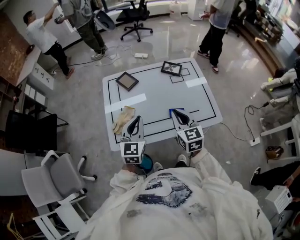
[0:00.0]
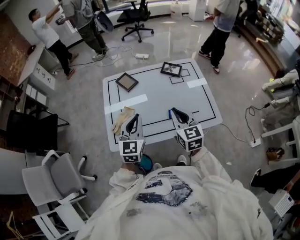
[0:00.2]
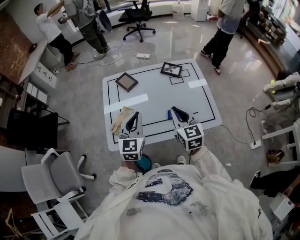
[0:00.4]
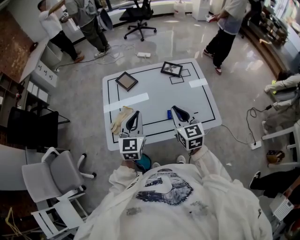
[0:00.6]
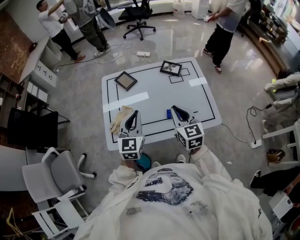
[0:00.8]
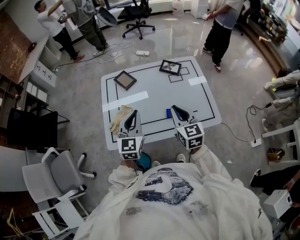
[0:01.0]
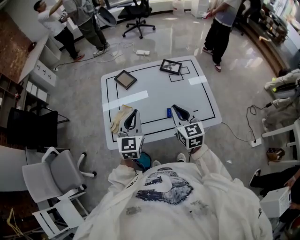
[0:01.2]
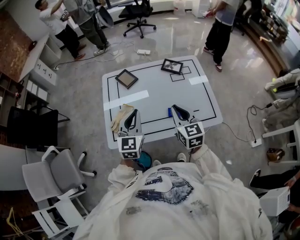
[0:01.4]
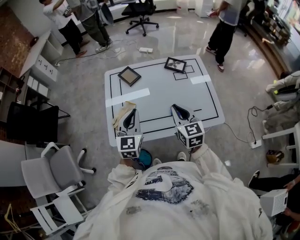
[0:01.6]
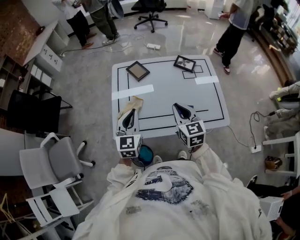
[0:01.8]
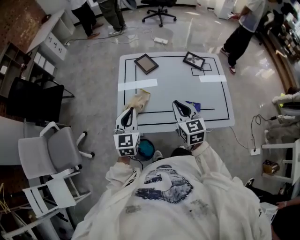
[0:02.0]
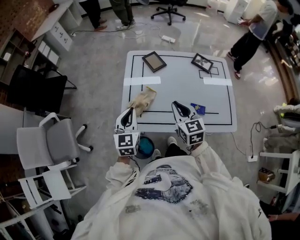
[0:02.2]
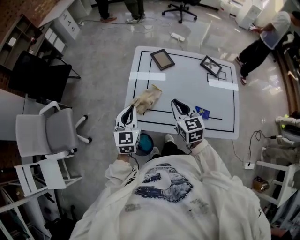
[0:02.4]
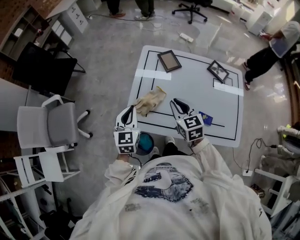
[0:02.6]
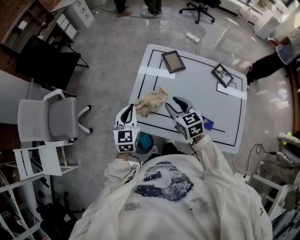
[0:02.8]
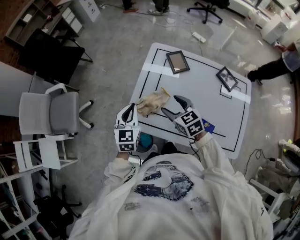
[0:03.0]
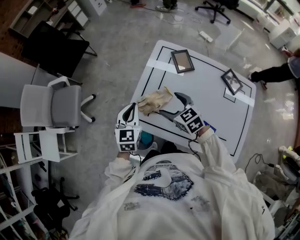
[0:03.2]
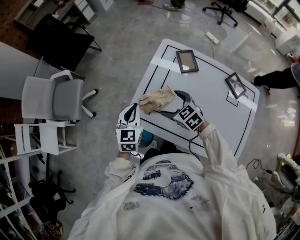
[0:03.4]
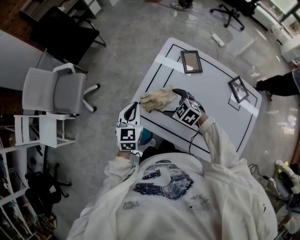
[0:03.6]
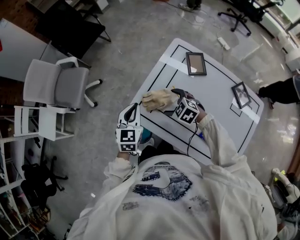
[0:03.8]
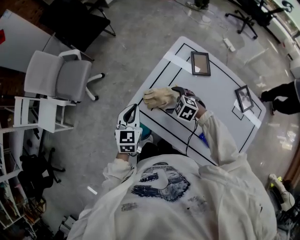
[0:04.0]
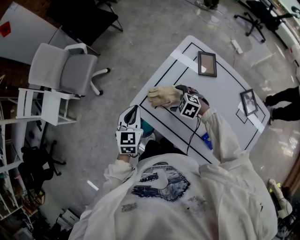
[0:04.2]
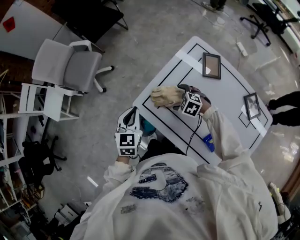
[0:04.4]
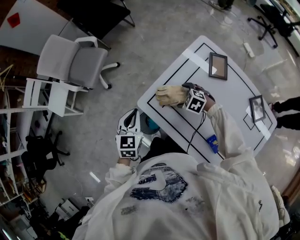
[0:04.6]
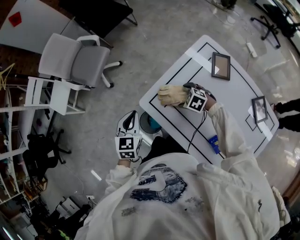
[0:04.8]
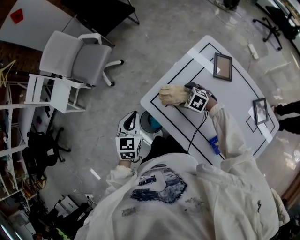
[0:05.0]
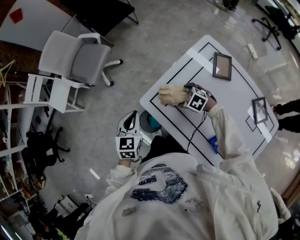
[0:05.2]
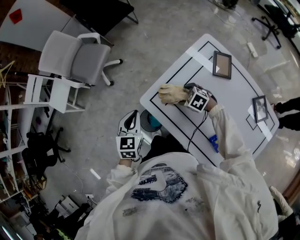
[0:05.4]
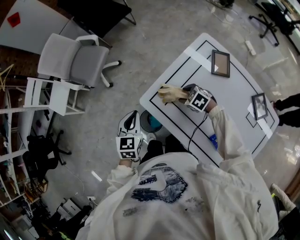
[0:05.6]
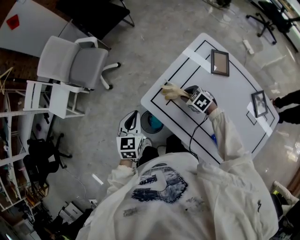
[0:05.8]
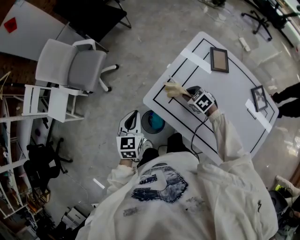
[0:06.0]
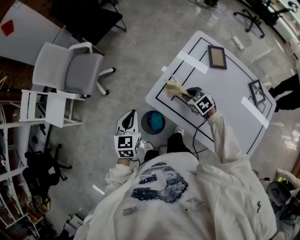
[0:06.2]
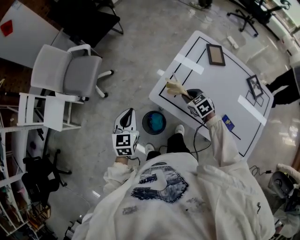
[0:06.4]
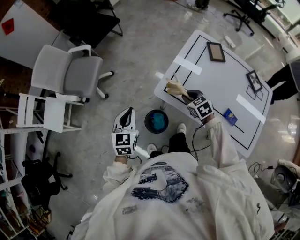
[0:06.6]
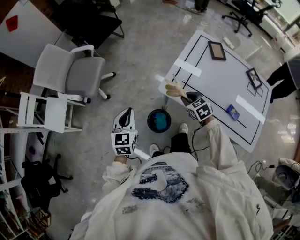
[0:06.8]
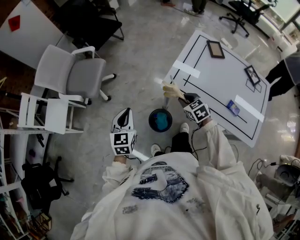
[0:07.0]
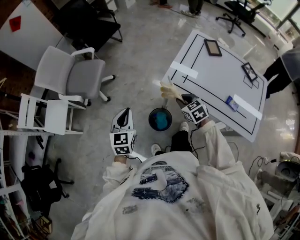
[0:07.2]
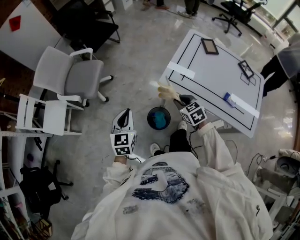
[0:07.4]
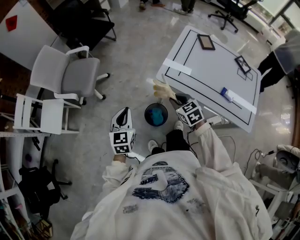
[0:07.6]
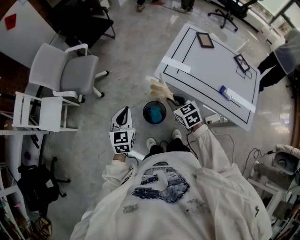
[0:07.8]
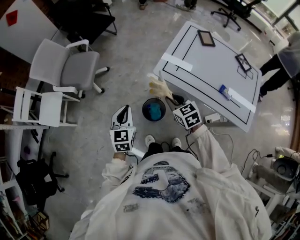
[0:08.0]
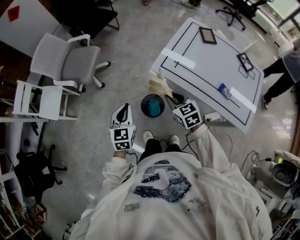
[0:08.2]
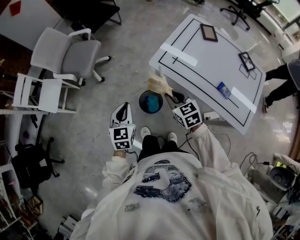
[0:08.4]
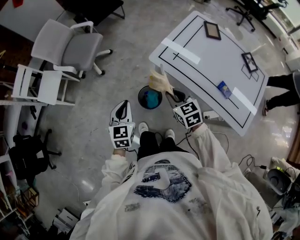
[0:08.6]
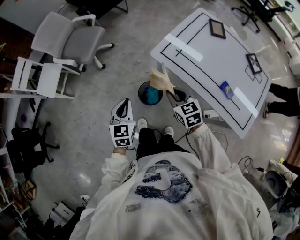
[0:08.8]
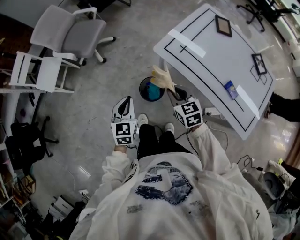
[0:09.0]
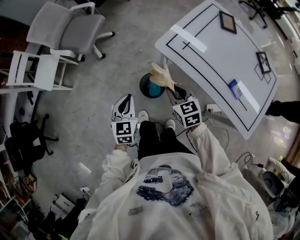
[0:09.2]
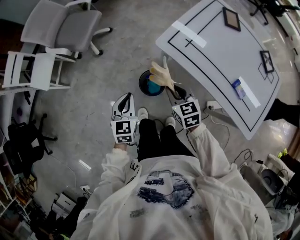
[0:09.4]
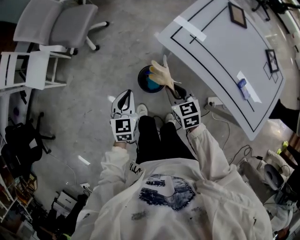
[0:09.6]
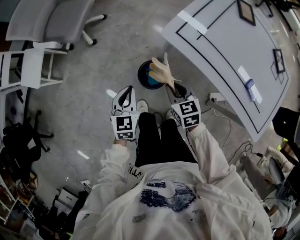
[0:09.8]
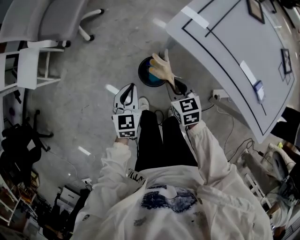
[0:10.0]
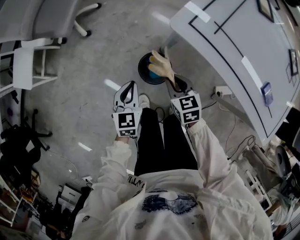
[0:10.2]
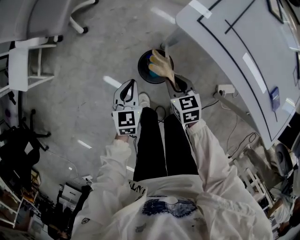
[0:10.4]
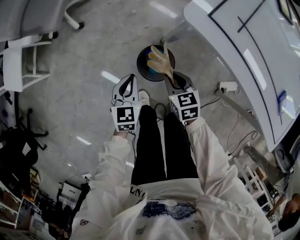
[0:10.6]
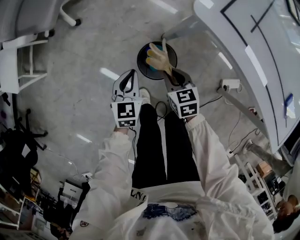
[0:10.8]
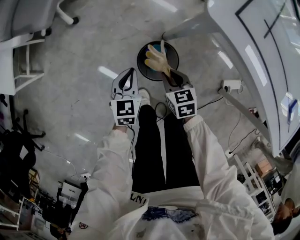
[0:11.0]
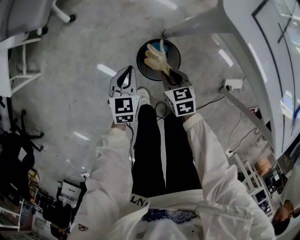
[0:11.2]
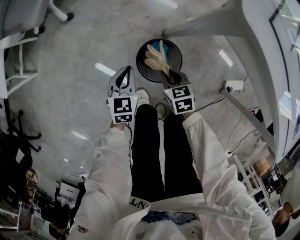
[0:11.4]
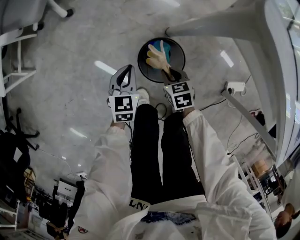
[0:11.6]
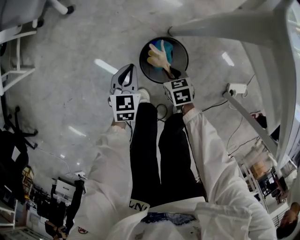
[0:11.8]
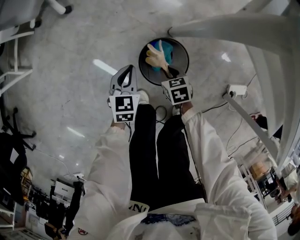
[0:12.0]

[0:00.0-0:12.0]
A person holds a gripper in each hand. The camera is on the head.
0:00.0 to 0:01.6: The grippers make only small movements.
0:01.6 to 0:03.0: The left gripper shifts by about 20 cm, and rotates roughly 30 degrees. Meanwhile the right gripper ends up about 25 cm from where it was, rotates roughly 50 degrees, and opens its fingers.
0:03.0 to 0:04.4: The left gripper ends up roughly 10 cm from where it was, and swivels some 20 degrees. The right gripper moves downward, approximately 15 cm, and swivels about 60 degrees.
0:04.4 to 0:06.0: The right gripper rotates approximately 20 degrees, and closes its fingers; the left gripper heads to the left, covering approximately 10 cm.
0:06.0 to 0:07.6: The left gripper moves to the left and backward, approximately 25 cm. The right gripper moves to the left, backward and upward, about 30 cm, and rotates approximately 30 degrees.
0:07.6 to 0:09.0: The right gripper goes roughly 5 cm backward. The left gripper shifts approximately 15 cm backward, downward and to the right.
0:09.0 to 0:10.4: The two grippers go approximately 25 cm downward.
0:10.4 to 0:12.0: The grippers both shift downward by some 30 cm.

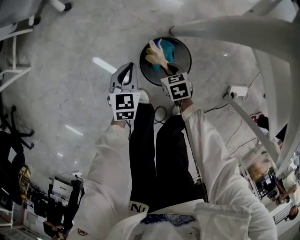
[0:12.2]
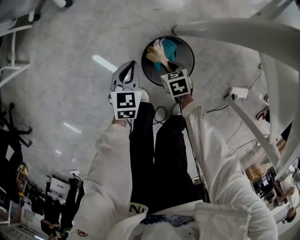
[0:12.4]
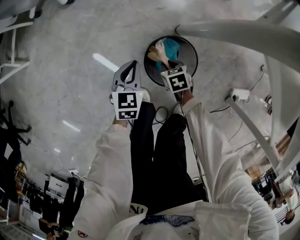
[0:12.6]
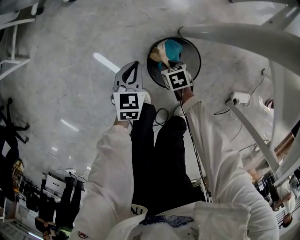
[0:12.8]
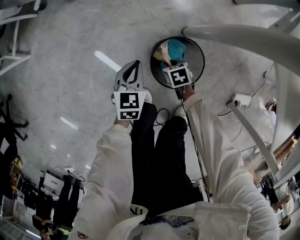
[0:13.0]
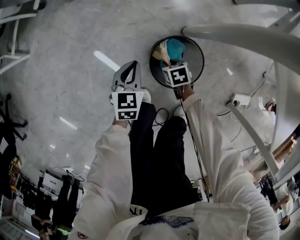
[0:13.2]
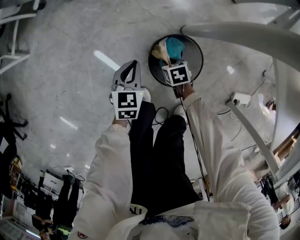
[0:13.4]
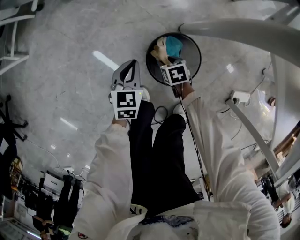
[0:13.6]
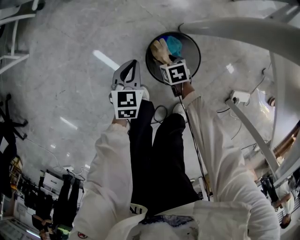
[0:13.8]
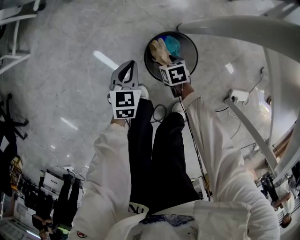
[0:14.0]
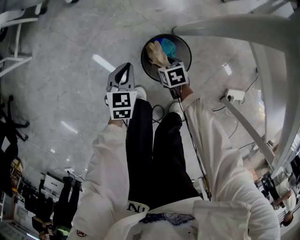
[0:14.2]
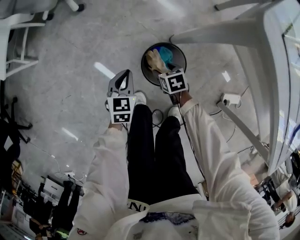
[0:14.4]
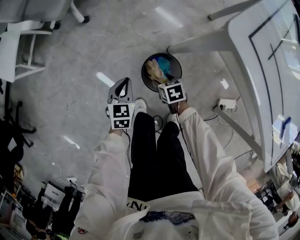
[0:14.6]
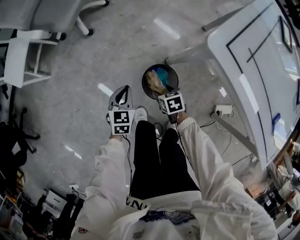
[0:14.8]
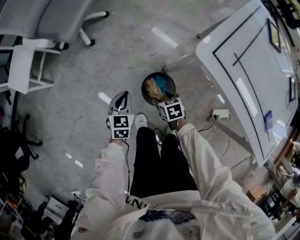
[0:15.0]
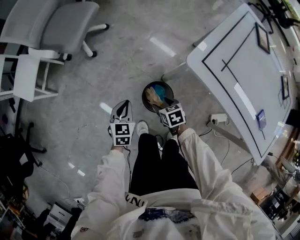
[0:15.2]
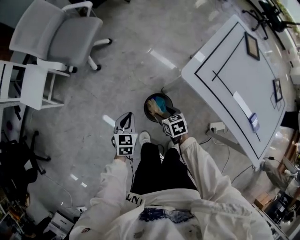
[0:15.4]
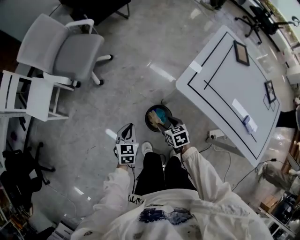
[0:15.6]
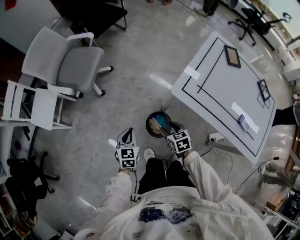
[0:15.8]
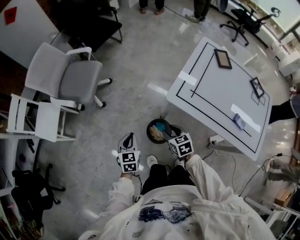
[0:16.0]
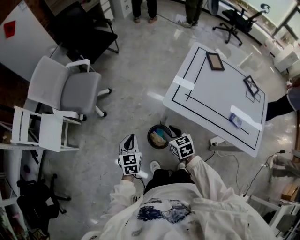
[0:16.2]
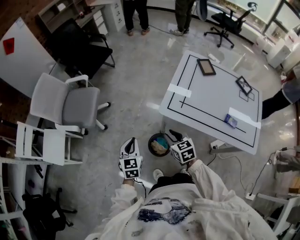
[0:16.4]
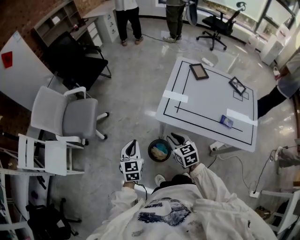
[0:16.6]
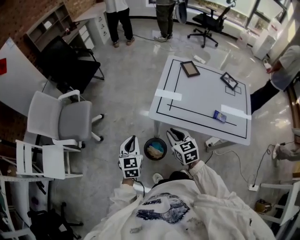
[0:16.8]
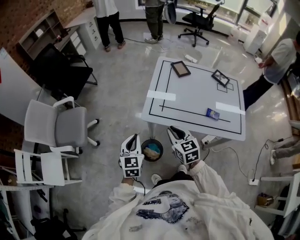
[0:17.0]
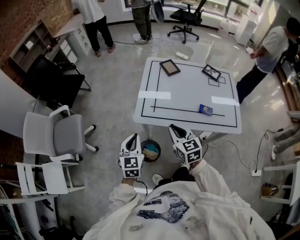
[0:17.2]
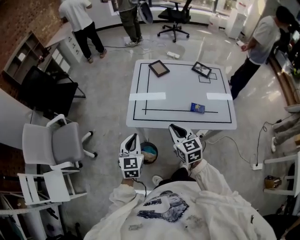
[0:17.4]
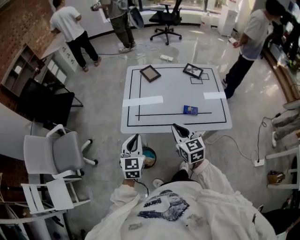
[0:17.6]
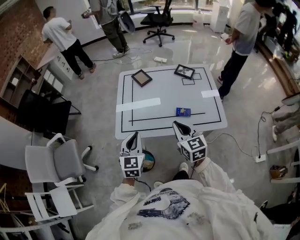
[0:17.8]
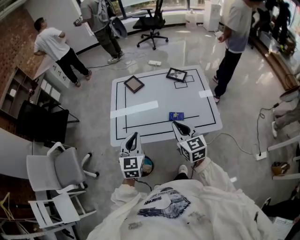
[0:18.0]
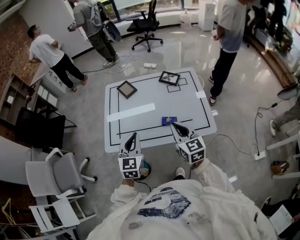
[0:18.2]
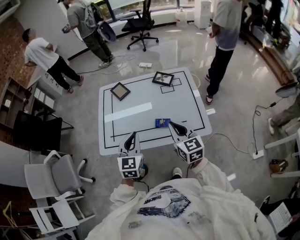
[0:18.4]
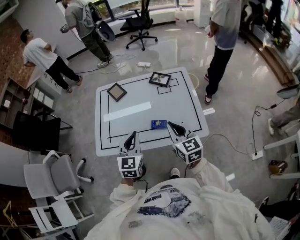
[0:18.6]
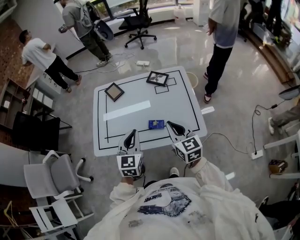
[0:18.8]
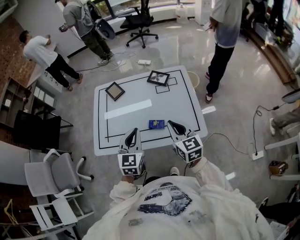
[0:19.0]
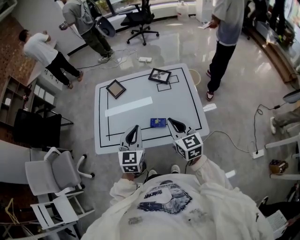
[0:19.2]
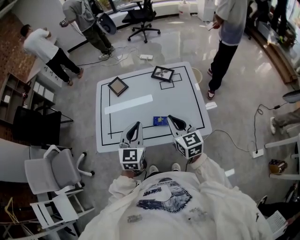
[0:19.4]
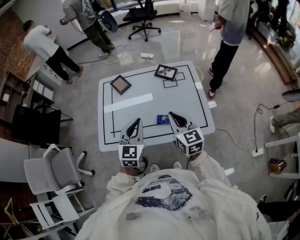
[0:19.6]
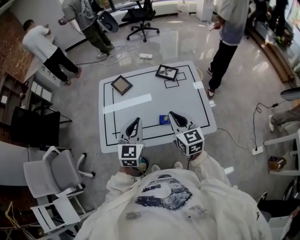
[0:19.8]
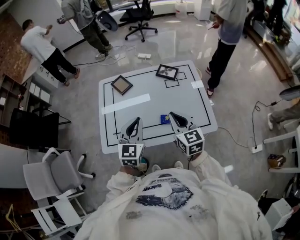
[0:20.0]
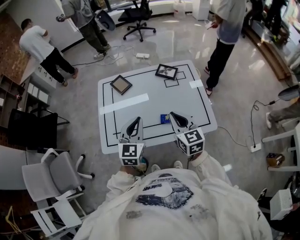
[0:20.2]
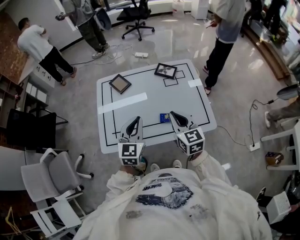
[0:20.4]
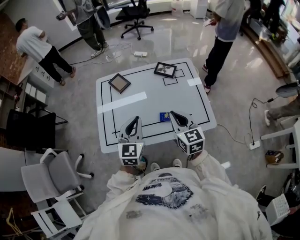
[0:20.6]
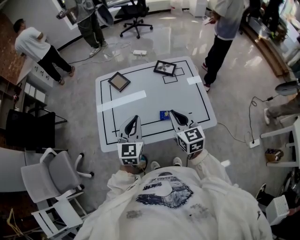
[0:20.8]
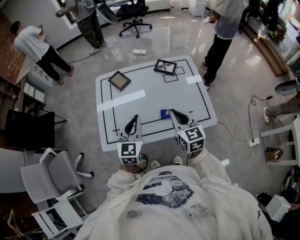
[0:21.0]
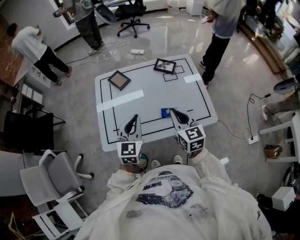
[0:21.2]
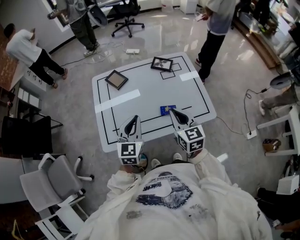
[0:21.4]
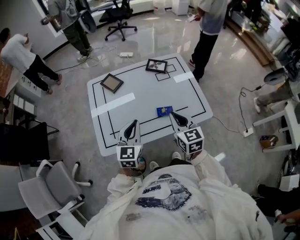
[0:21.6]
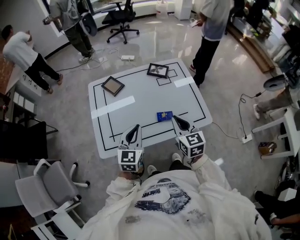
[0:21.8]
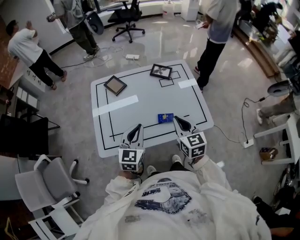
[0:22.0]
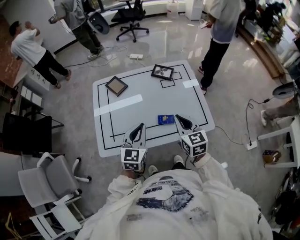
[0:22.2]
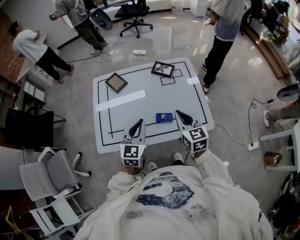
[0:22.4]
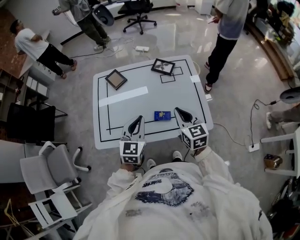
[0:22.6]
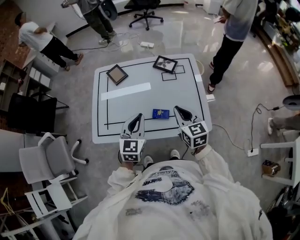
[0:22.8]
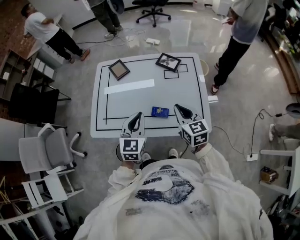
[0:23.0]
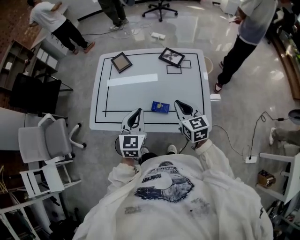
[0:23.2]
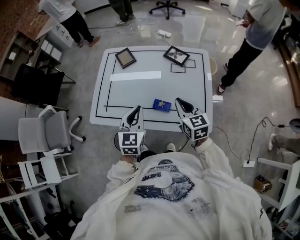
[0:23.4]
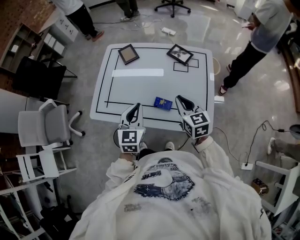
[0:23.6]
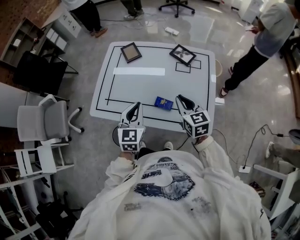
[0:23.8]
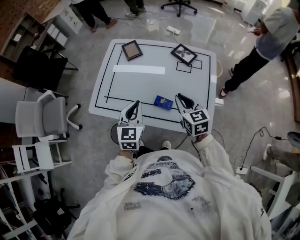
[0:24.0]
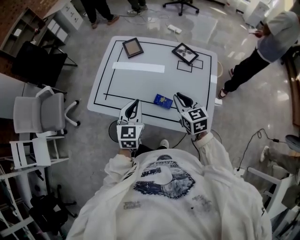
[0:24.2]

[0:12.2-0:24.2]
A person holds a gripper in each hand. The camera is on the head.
0:12.2 to 0:13.8: The right gripper goes some 5 cm downward, and opens up.
0:13.8 to 0:15.2: Both grippers travel together upward, approximately 30 cm.
0:15.2 to 0:16.6: Both grippers travel together upward, about 35 cm. The right gripper rotates some 40 degrees, and closes its fingers; the left gripper changes its angle by about 20 degrees.
0:16.6 to 0:18.2: The right gripper shifts by roughly 40 cm, and rotates some 40 degrees. Meanwhile the left gripper shifts by about 40 cm, and swivels some 30 degrees.
0:18.2 to 0:19.8: The left gripper goes about 10 cm forward and to the right; the right gripper heads forward, covering some 5 cm, and travels to the right and back again, about 10 cm each way.
0:19.8 to 0:21.2: There are only small adjustments of the grippers.
0:21.2 to 0:22.6: Both grippers move to the right, about 10 cm.
0:22.6 to 0:24.2: The left gripper changes its angle by roughly 20 degrees, while the right gripper heads downward, covering approximately 5 cm, and rotates approximately 30 degrees.
